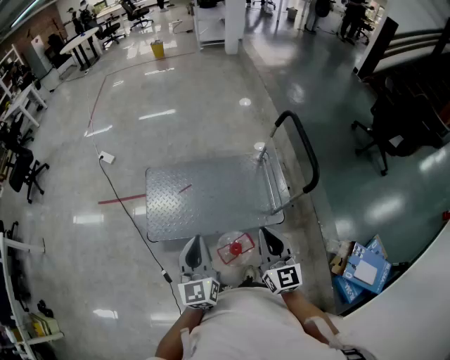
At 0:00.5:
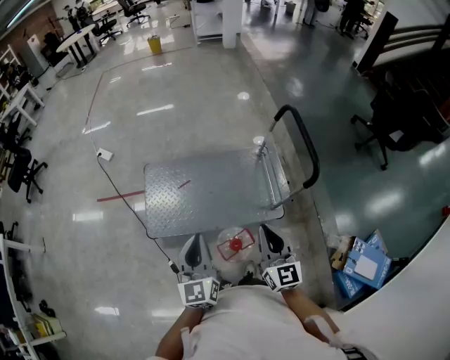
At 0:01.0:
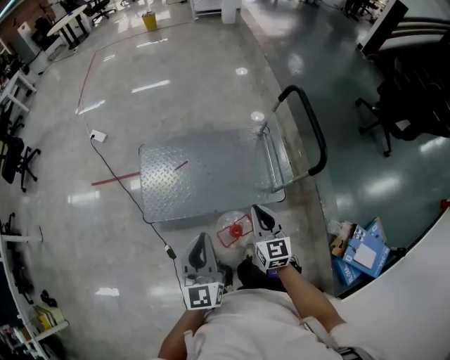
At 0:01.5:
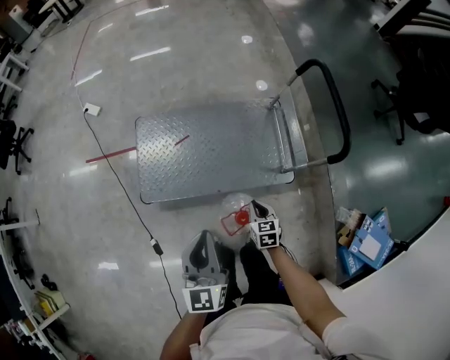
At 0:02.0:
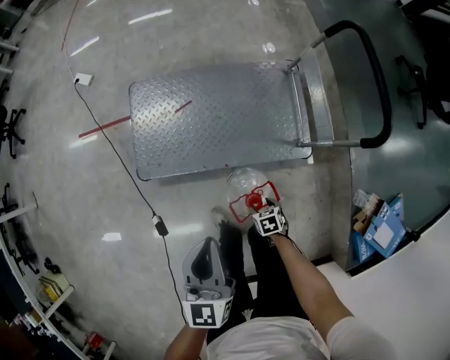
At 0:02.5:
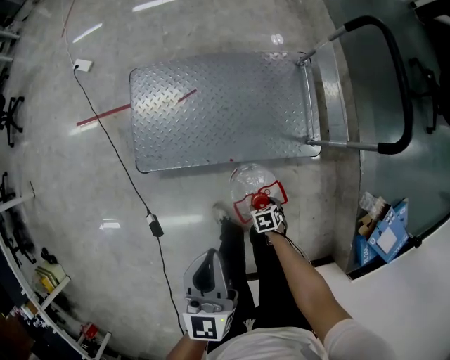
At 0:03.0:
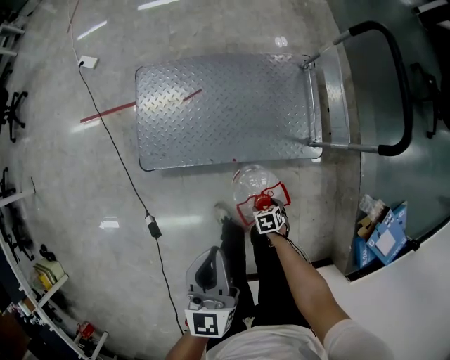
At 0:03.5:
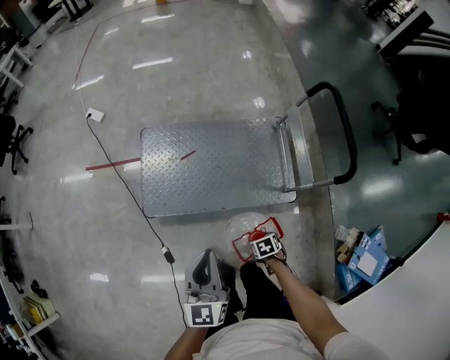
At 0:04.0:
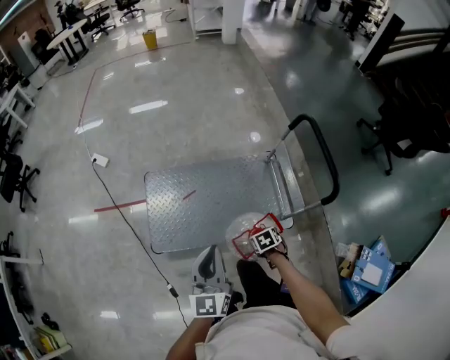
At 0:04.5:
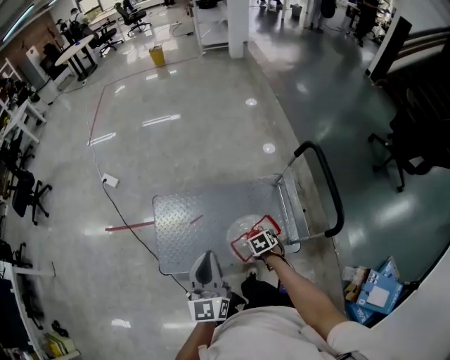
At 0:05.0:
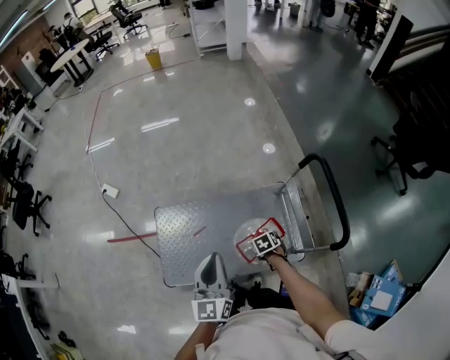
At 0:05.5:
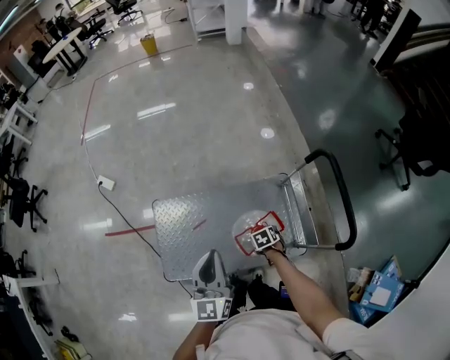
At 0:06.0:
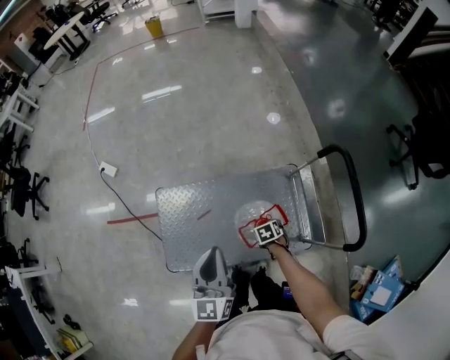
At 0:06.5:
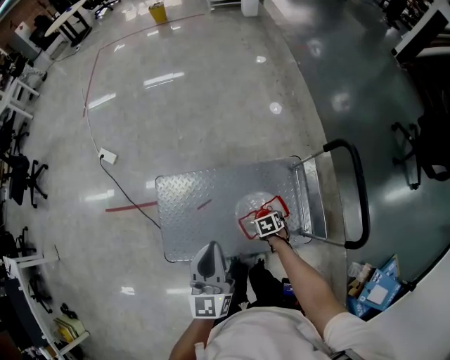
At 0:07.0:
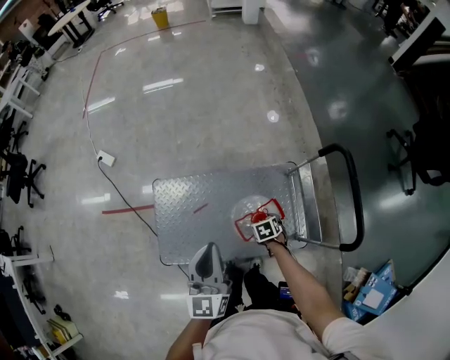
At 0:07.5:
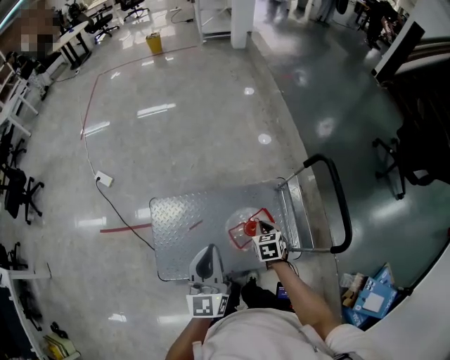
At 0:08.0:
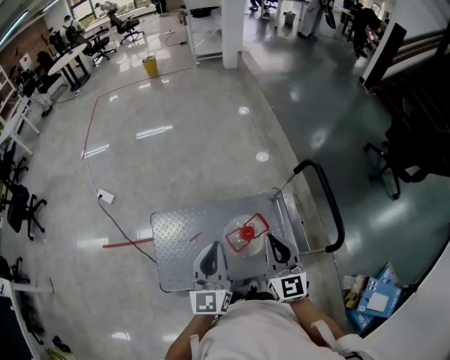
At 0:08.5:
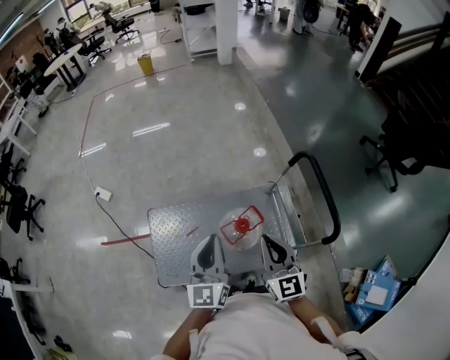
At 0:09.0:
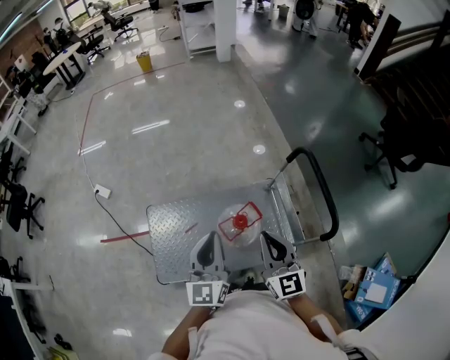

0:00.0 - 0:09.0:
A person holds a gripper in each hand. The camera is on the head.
0:00.0 - 0:02.0: The left gripper goes about 15 cm downward; the right gripper is displaced downward by some 60 cm, tilts its fingers some 70 degrees downward, and opens its fingers.
0:02.0 - 0:04.5: The left gripper ends up roughly 25 cm from where it was; the right gripper shifts by roughly 40 cm.
0:04.5 - 0:07.0: The left gripper shifts by approximately 15 cm. The right gripper ends up approximately 15 cm from where it was.
0:07.0 - 0:09.0: The right gripper goes roughly 40 cm upward, points its fingers approximately 70 degrees further upward, and closes up; the left gripper is displaced upward, to the right and backward by about 10 cm.

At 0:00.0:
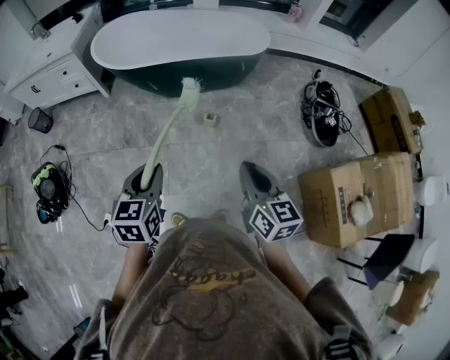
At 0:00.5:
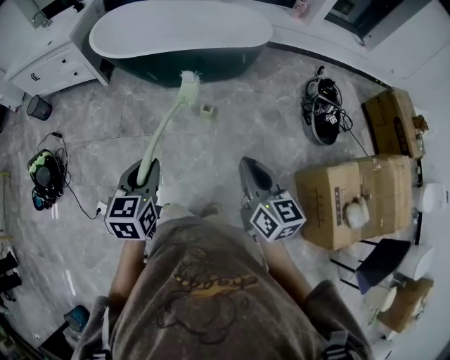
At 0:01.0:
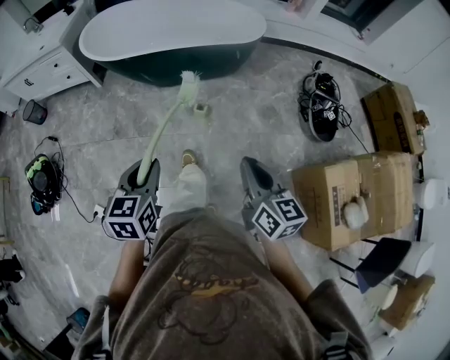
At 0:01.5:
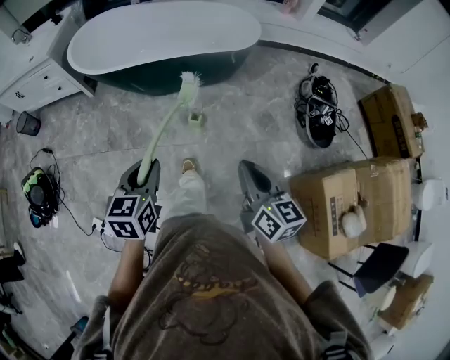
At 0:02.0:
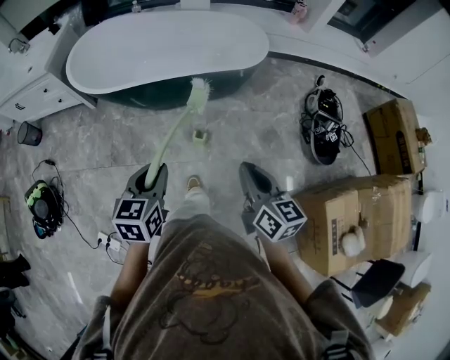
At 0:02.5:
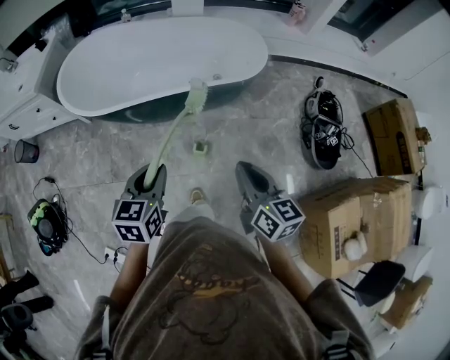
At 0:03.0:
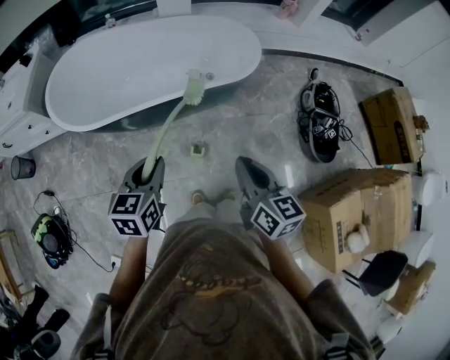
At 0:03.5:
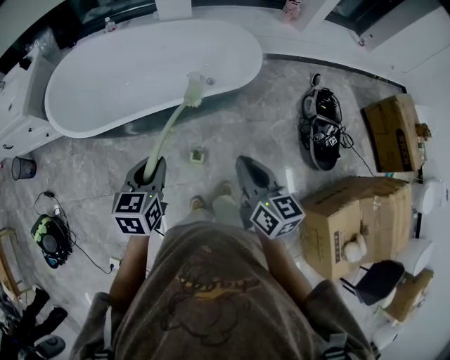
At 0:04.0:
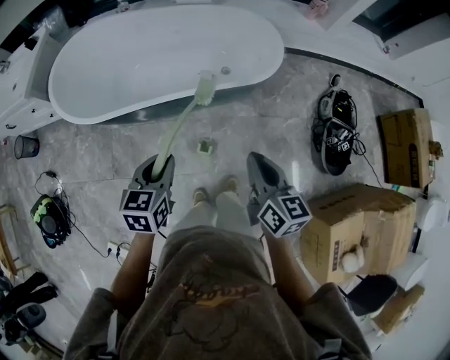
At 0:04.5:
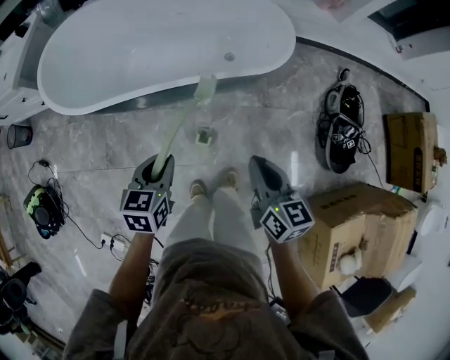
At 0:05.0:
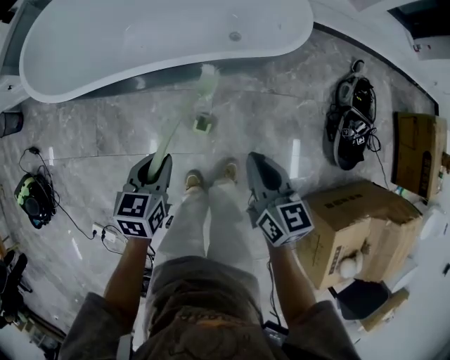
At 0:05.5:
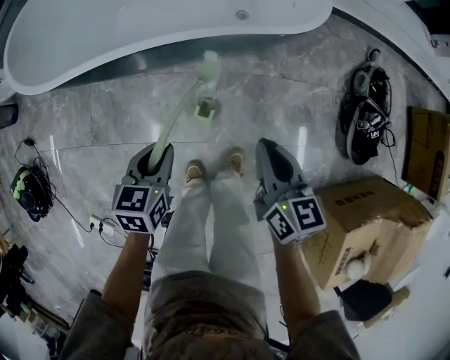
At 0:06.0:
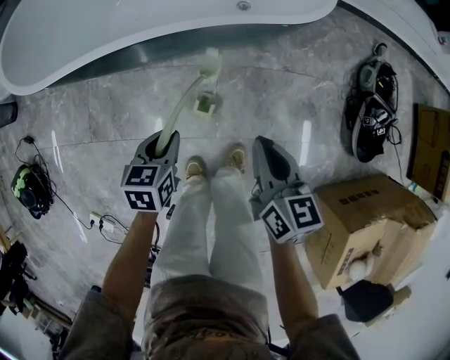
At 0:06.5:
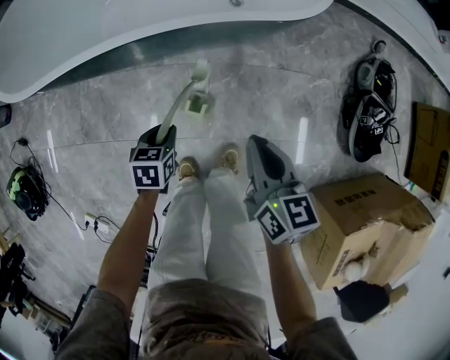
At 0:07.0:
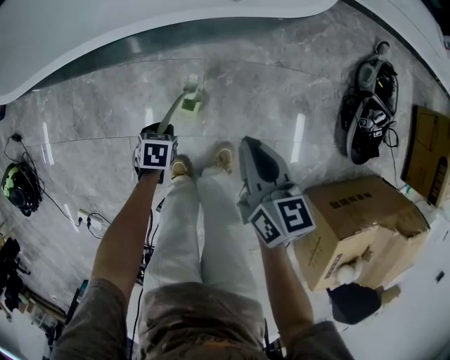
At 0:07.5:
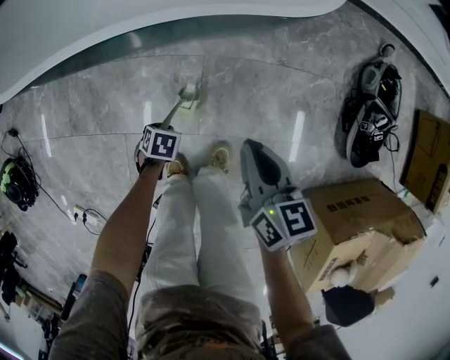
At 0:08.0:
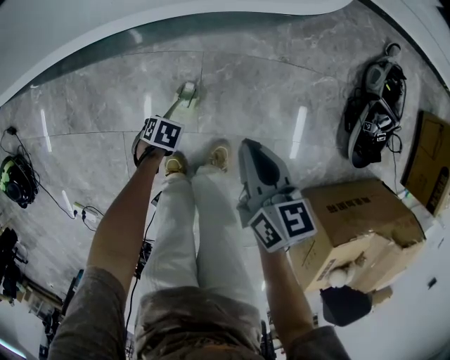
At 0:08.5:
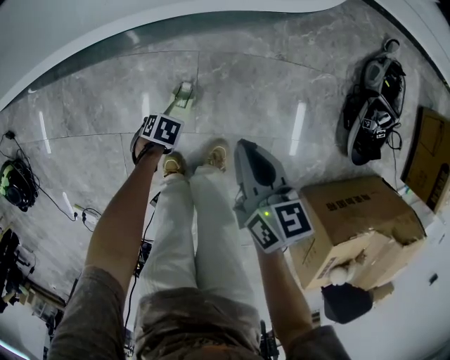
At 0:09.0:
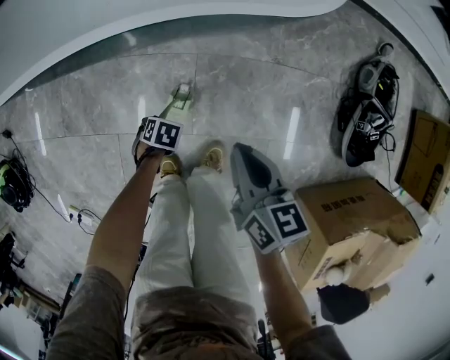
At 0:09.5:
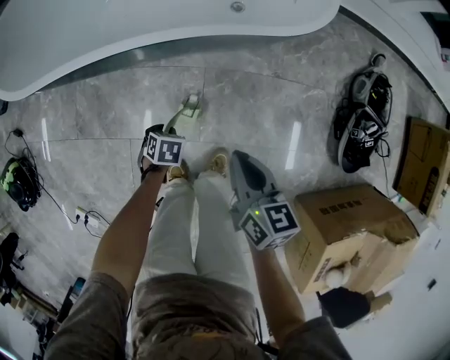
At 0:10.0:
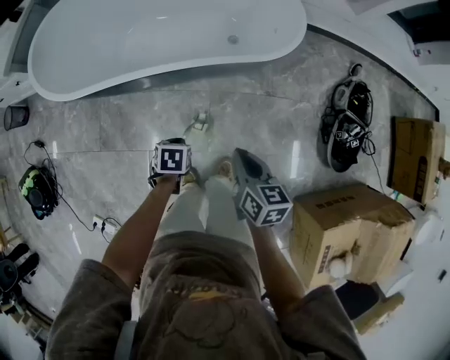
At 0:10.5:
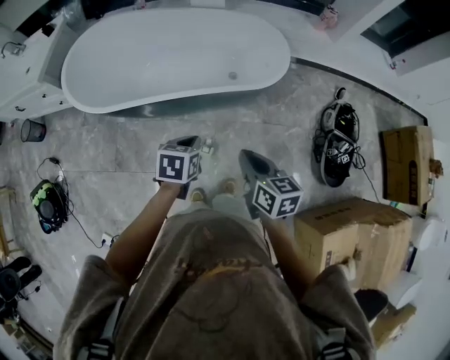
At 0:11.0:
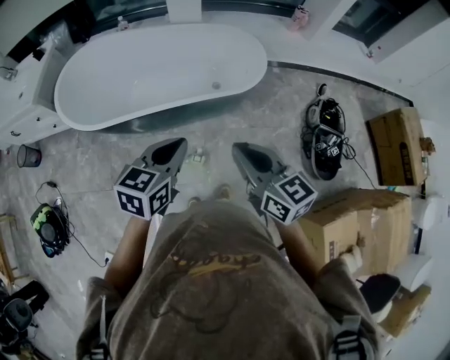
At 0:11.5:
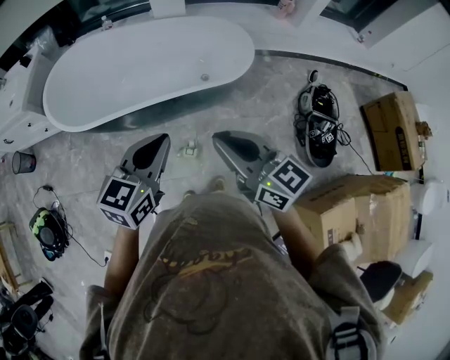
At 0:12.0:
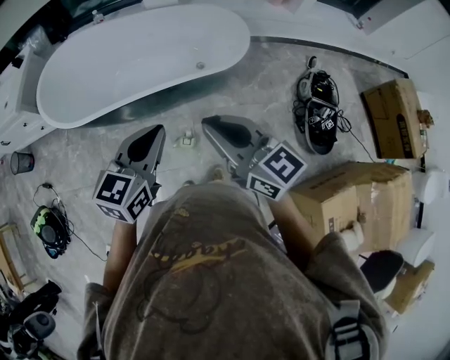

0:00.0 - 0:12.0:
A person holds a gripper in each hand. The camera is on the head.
0:00.0 - 0:02.0: Both grippers travel together forward and to the right, roughly 25 cm.
0:02.0 - 0:04.0: Both grippers travel together forward, approximately 25 cm.
0:04.0 - 0:06.0: Both grippers move downward, about 30 cm.
0:06.0 - 0:08.0: The left gripper goes about 25 cm downward, and points its fingers approximately 40 degrees further downward; the right gripper moves downward, about 10 cm.
0:08.0 - 0:10.0: The right gripper moves upward, some 15 cm. The left gripper goes roughly 30 cm upward, swivels roughly 30 degrees, and opens, then closes again.
0:10.0 - 0:12.0: The grippers both shift upward by about 35 cm. The left gripper points its fingers approximately 50 degrees further upward; the right gripper tips its fingers upward by about 30 degrees.

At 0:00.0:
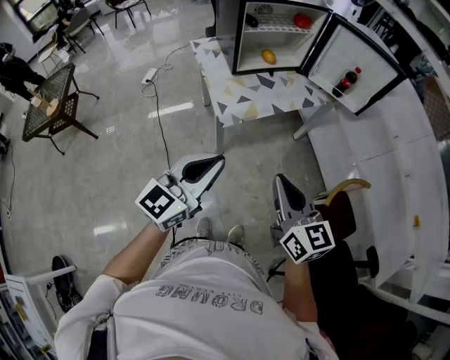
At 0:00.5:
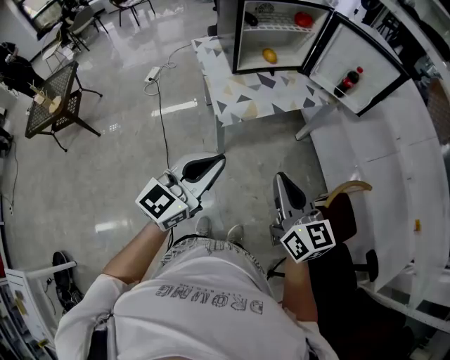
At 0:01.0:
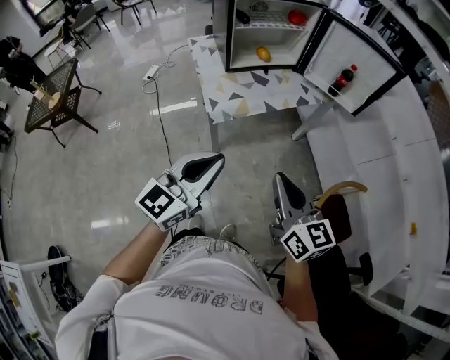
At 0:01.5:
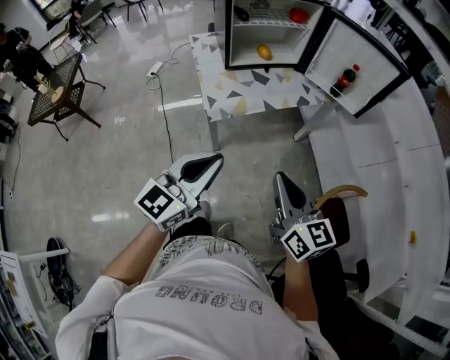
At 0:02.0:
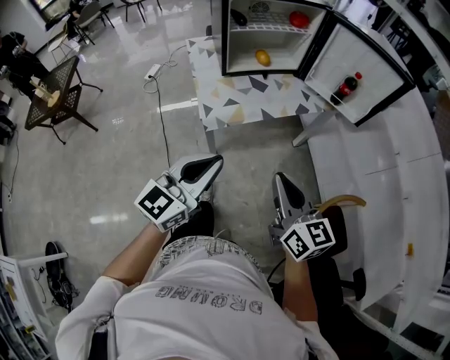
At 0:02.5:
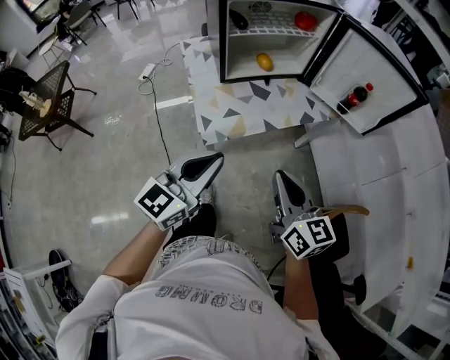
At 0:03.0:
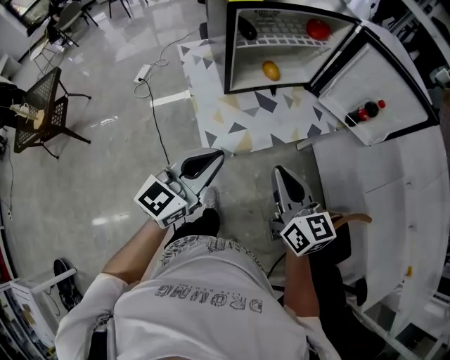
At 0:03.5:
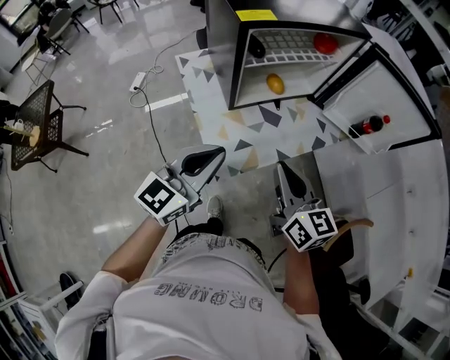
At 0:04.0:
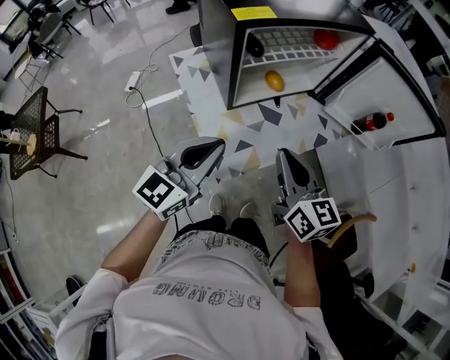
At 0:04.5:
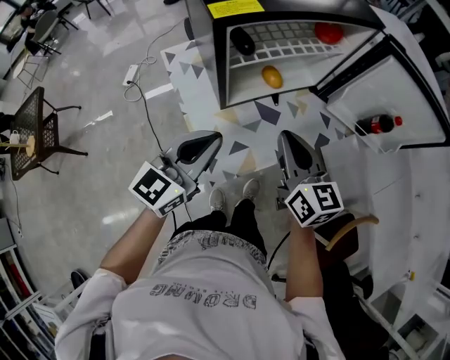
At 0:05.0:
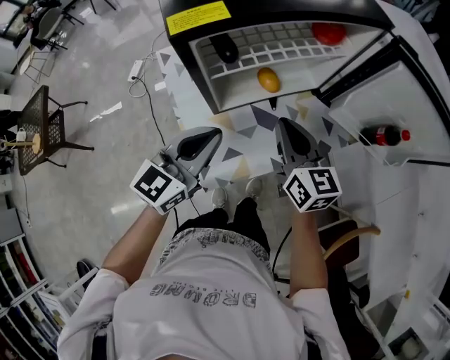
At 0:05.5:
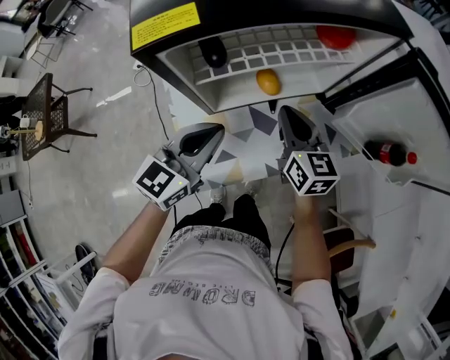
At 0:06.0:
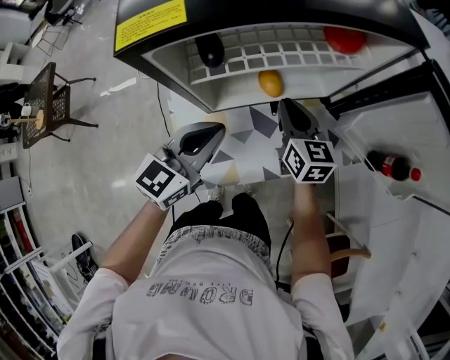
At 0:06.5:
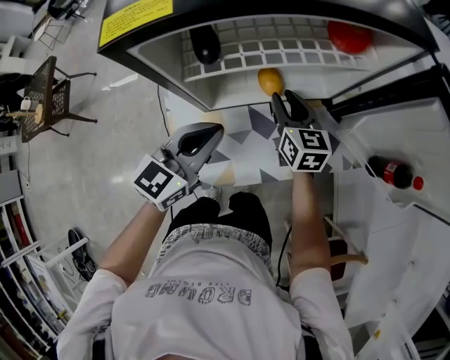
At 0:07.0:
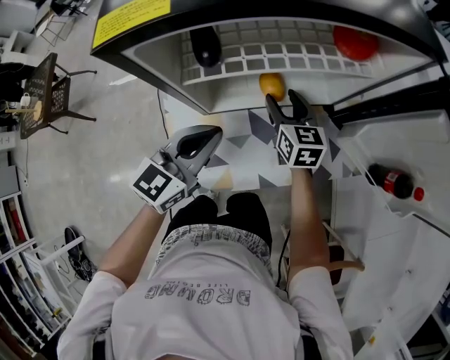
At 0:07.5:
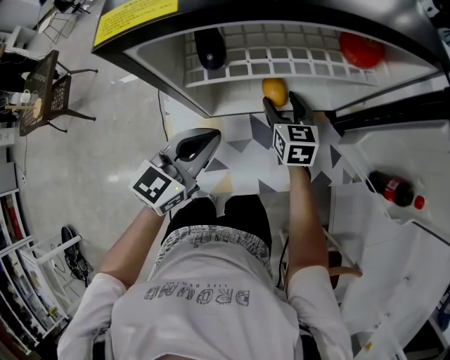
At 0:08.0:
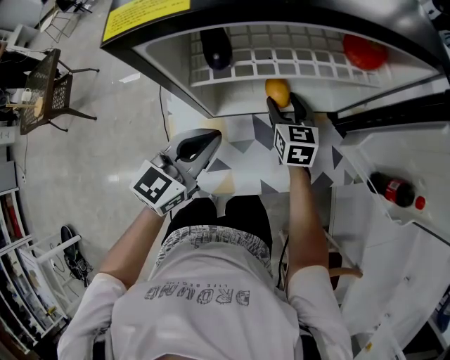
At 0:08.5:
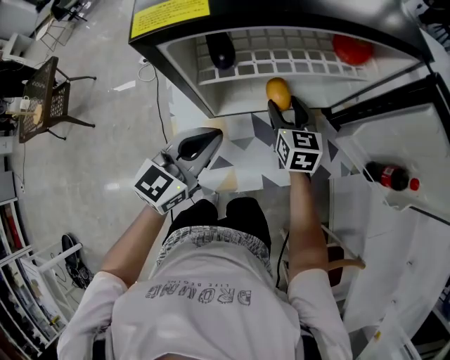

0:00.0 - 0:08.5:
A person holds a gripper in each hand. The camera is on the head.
0:00.0 - 0:02.0: Both grippers travel together to the right and forward, approximately 10 cm.
0:02.0 - 0:04.0: Both grippers move forward and to the left, about 30 cm.
0:04.0 - 0:06.5: The left gripper heads forward, downward and to the right, covering approximately 20 cm; the right gripper heads forward and downward, covering roughly 35 cm, and opens up.
0:06.5 - 0:08.5: The right gripper opens.
